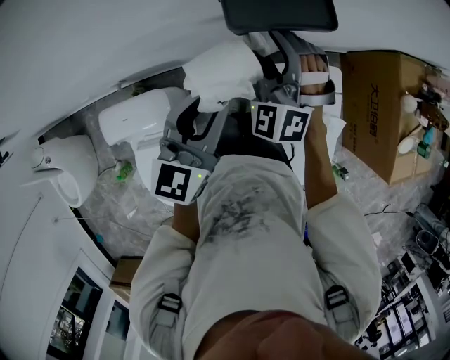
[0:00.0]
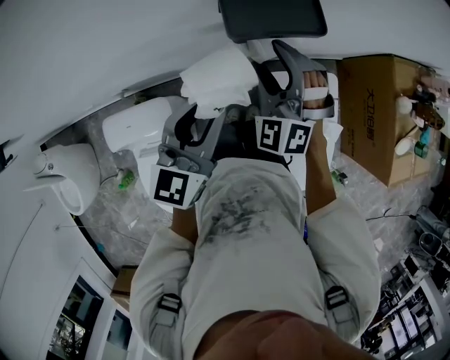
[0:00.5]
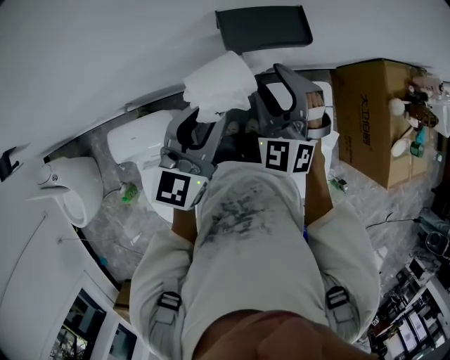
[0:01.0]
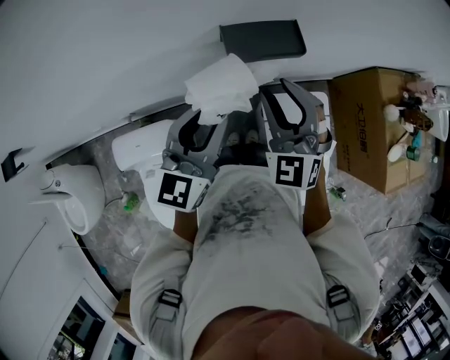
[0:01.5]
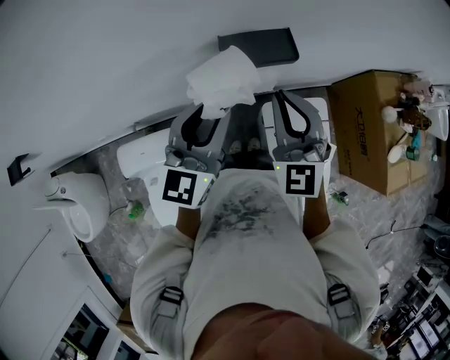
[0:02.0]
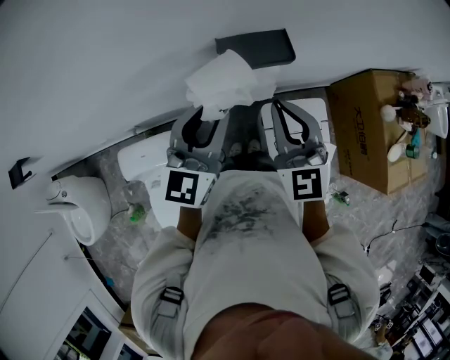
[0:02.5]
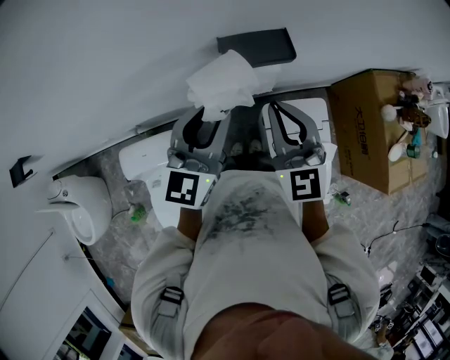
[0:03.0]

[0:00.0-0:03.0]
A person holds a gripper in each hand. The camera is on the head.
0:00.0 to 0:01.5: The right gripper moves upward and backward, approximately 15 cm, changes its angle by about 20 degrees, and closes up. The left gripper goes approximately 10 cm upward.
0:01.5 to 0:03.0: The right gripper moves about 5 cm, turns by about 20 degrees, and closes its fingers.

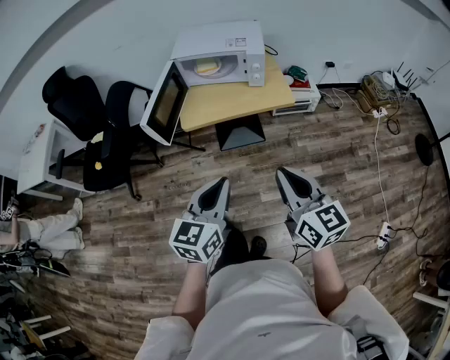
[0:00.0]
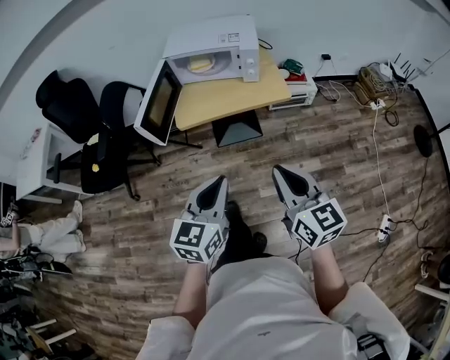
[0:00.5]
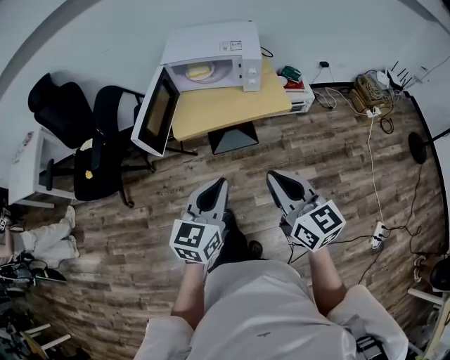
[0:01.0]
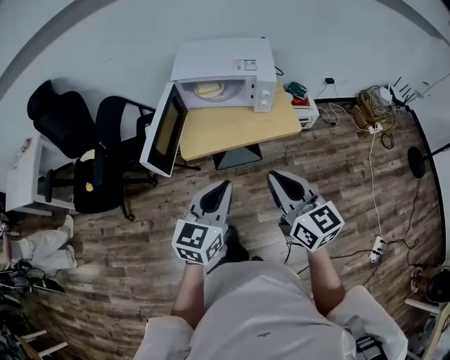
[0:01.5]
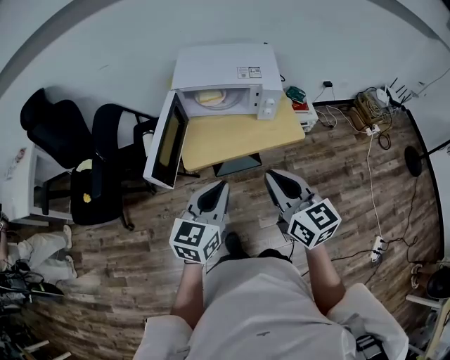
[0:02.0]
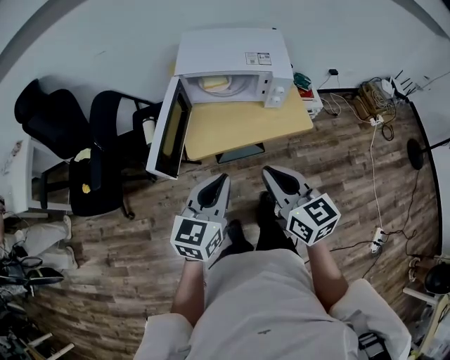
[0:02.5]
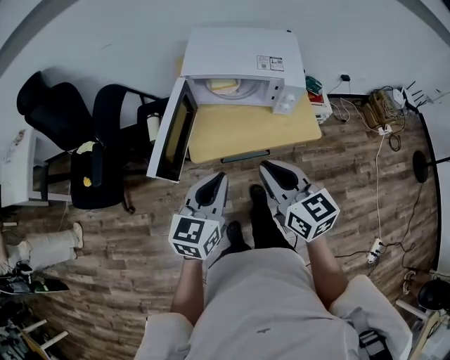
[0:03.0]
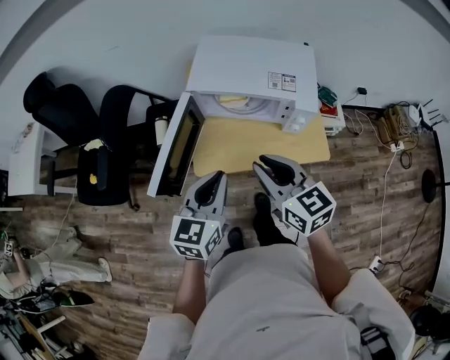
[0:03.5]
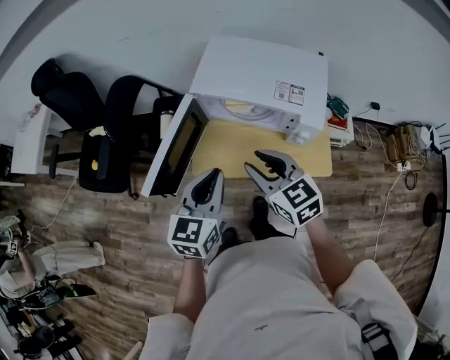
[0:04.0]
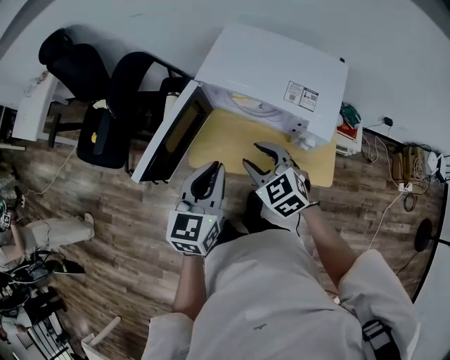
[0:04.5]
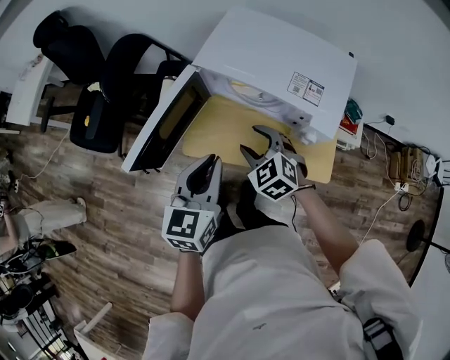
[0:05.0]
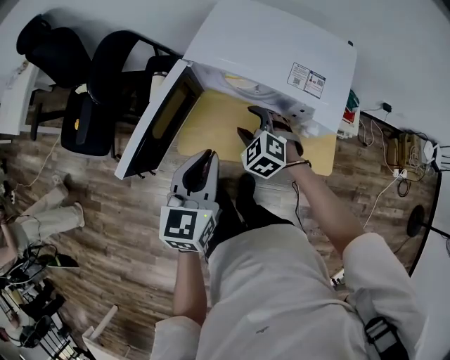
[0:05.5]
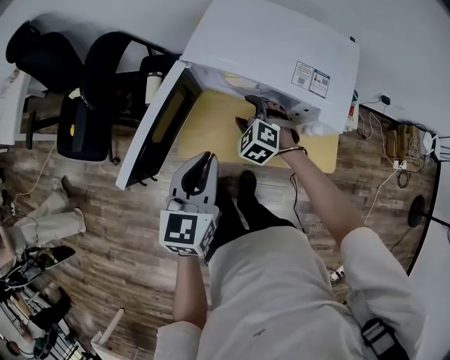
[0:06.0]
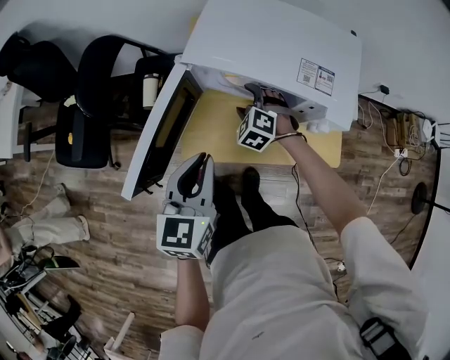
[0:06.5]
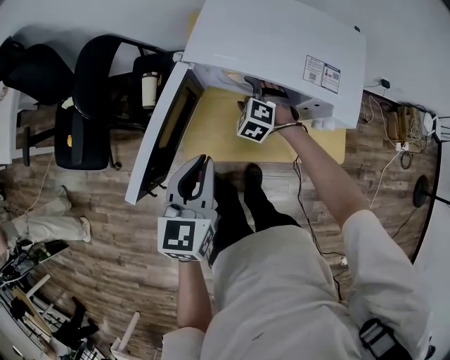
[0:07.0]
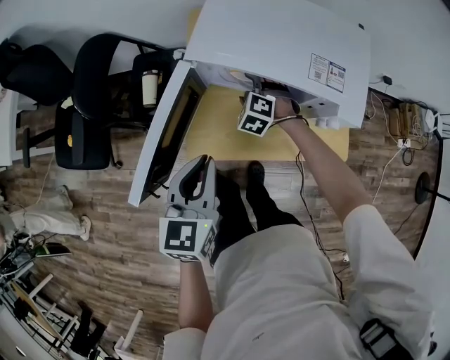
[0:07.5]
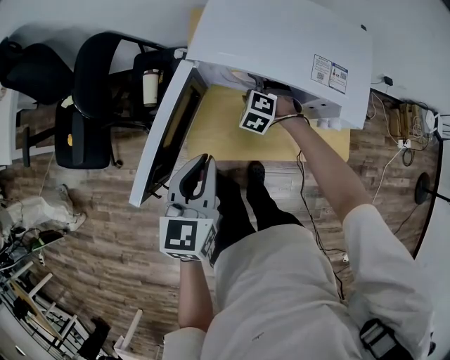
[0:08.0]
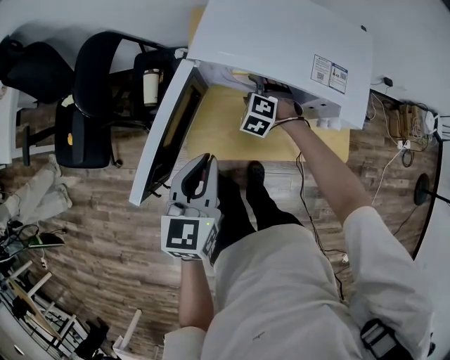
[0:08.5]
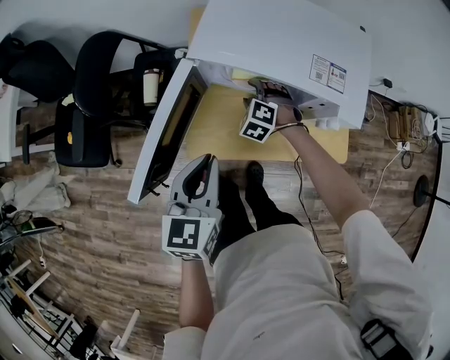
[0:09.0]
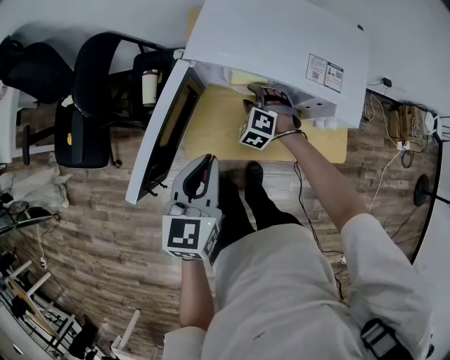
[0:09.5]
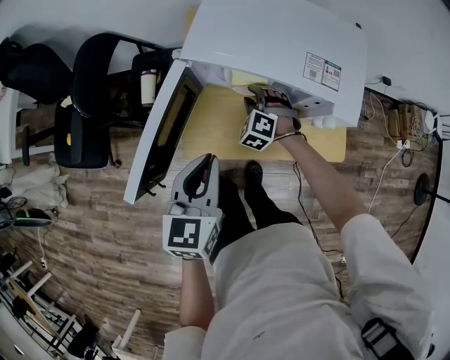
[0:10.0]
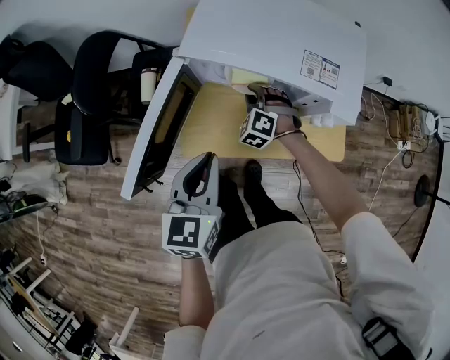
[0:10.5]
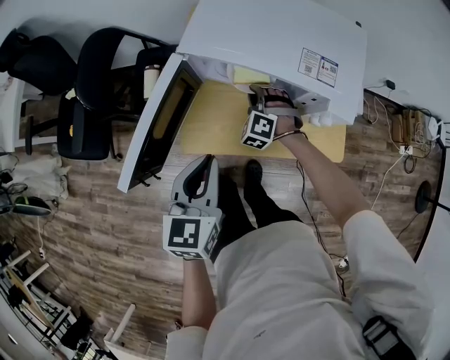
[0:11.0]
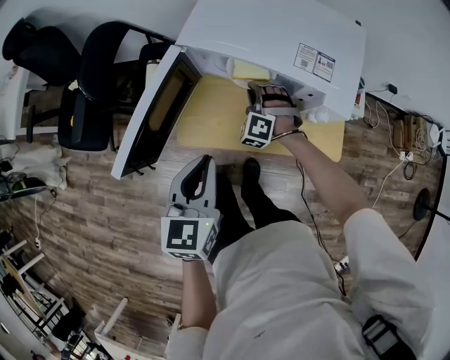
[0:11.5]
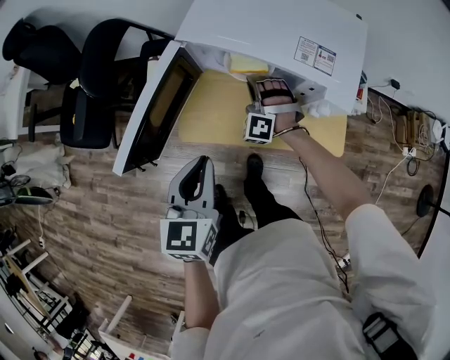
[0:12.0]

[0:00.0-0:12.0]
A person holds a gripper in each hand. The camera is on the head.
0:00.0 to 0:02.0: The right gripper heads forward and to the left, covering approximately 25 cm. Meanwhile the left gripper is displaced forward by roughly 20 cm.
0:02.0 to 0:04.0: The two grippers go roughly 20 cm forward. The right gripper turns by approximately 30 degrees, and opens its fingers, while the left gripper rotates approximately 20 degrees.
0:04.0 to 0:06.0: The right gripper goes approximately 25 cm downward and forward, rotates some 50 degrees, and opens up. The left gripper heads downward, covering about 5 cm.
0:06.0 to 0:08.0: The left gripper is displaced to the left by about 5 cm, while the right gripper moves forward and downward, approximately 10 cm.
0:08.0 to 0:10.0: The right gripper closes up.
0:10.0 to 0:12.0: The right gripper swivels roughly 30 degrees, and closes its fingers, while the left gripper is displaced backward by some 5 cm.

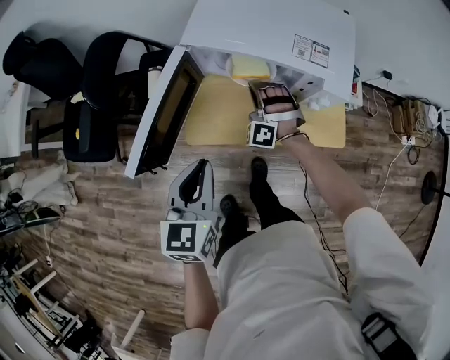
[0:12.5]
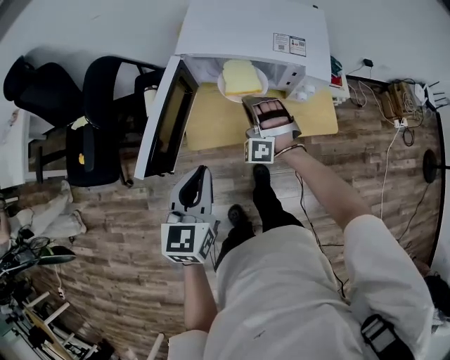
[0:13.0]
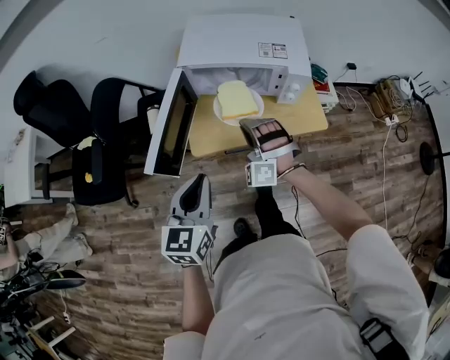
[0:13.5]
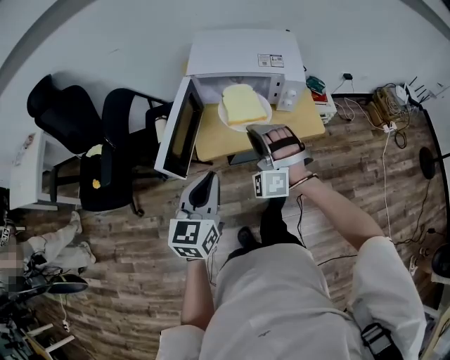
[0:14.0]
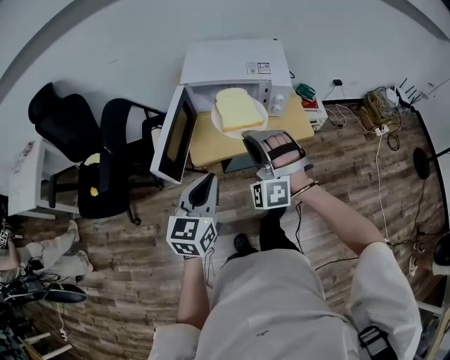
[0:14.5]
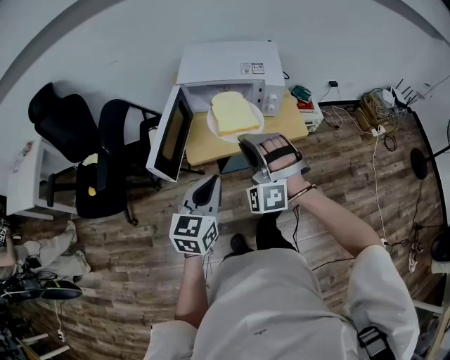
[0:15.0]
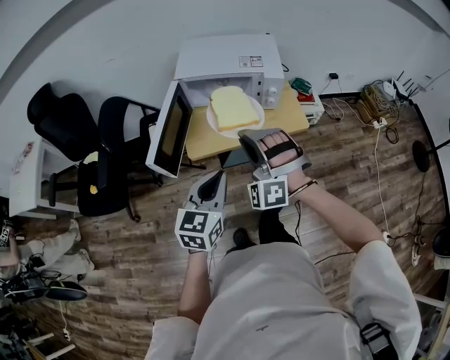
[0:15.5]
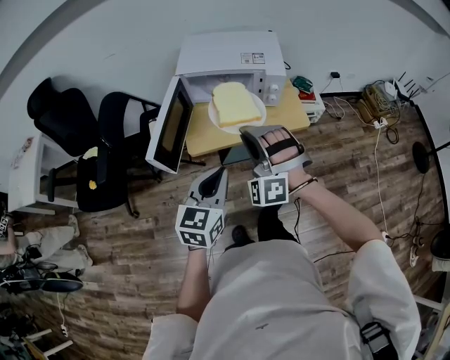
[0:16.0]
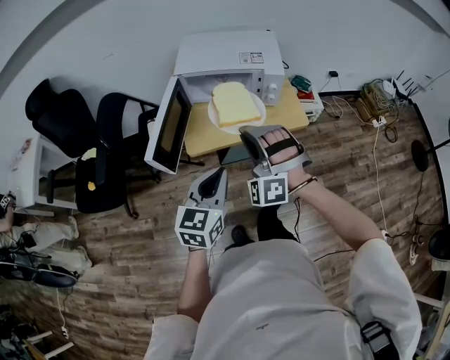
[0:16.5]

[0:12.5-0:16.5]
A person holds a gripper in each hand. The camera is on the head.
0:12.5 to 0:14.5: The right gripper goes roughly 40 cm backward and upward. The left gripper goes roughly 15 cm backward and upward, and changes its angle by about 20 degrees.
0:14.5 to 0:16.5: The left gripper shifts by about 5 cm.

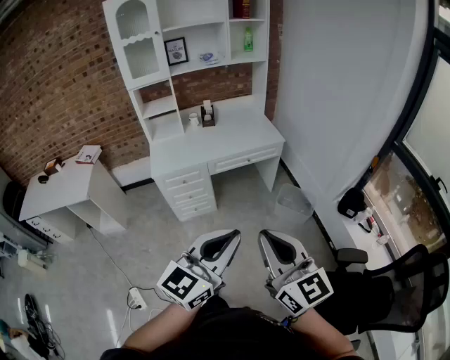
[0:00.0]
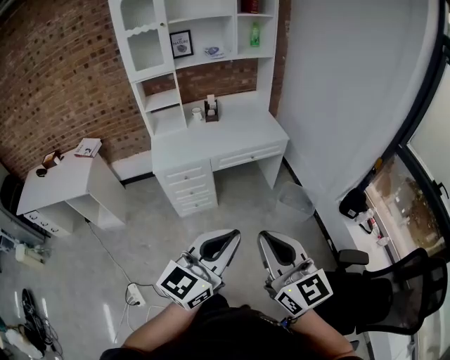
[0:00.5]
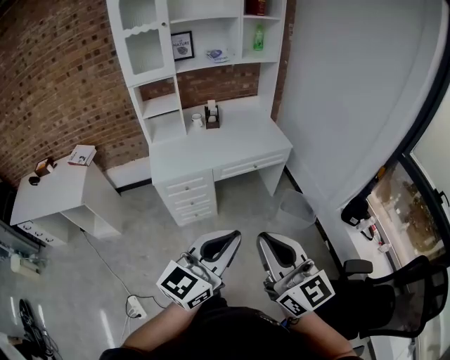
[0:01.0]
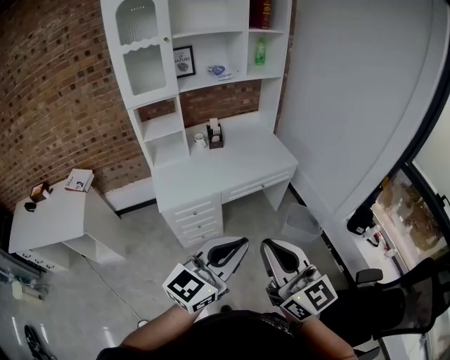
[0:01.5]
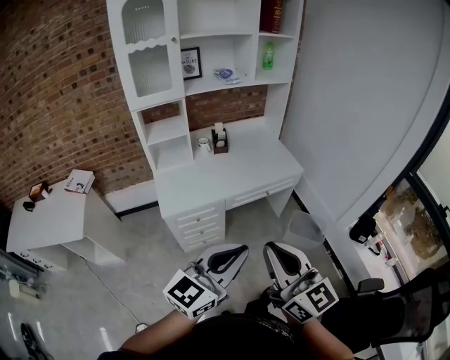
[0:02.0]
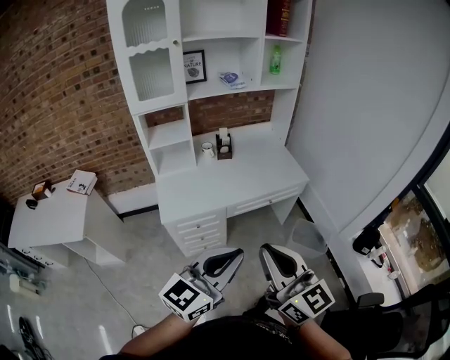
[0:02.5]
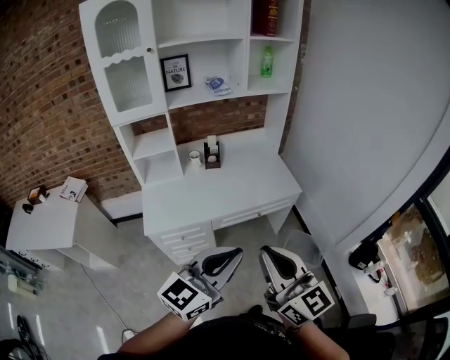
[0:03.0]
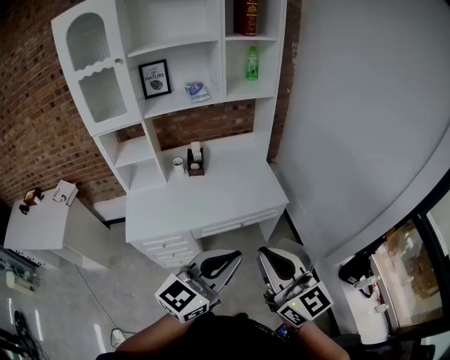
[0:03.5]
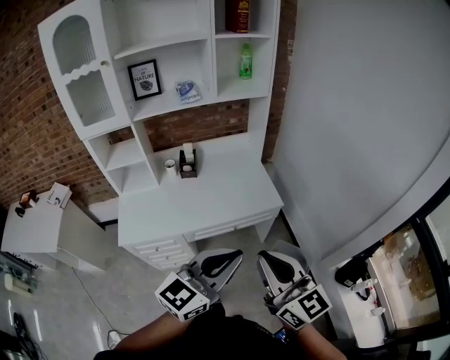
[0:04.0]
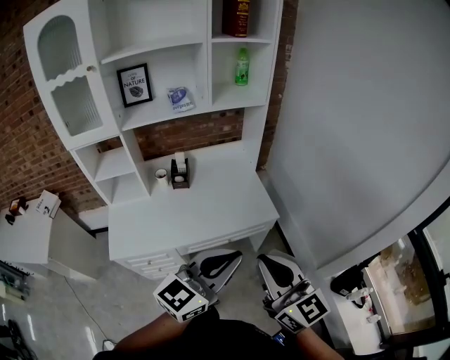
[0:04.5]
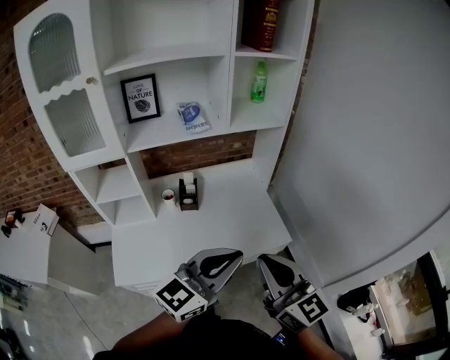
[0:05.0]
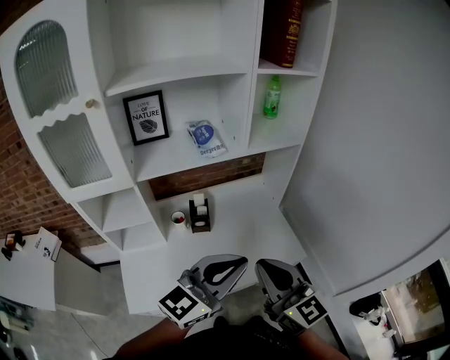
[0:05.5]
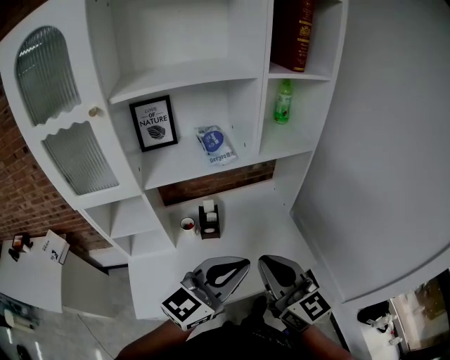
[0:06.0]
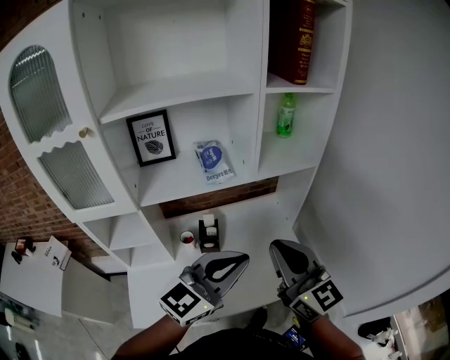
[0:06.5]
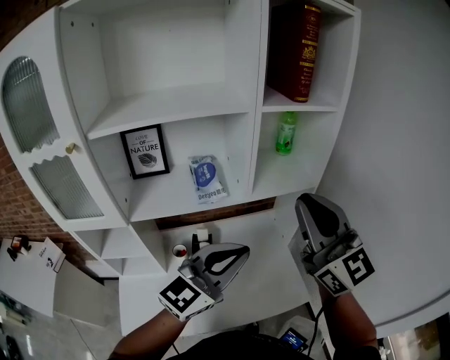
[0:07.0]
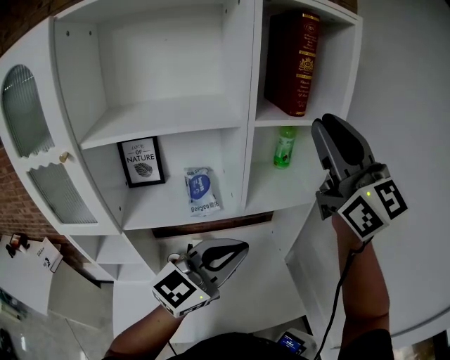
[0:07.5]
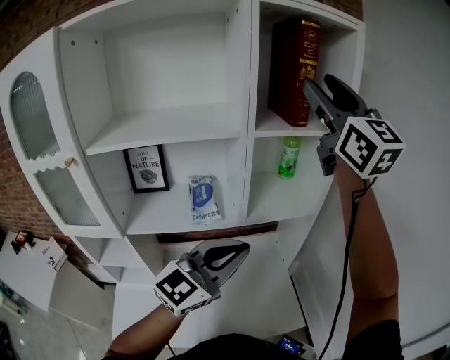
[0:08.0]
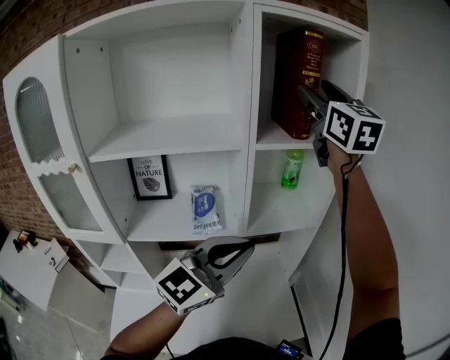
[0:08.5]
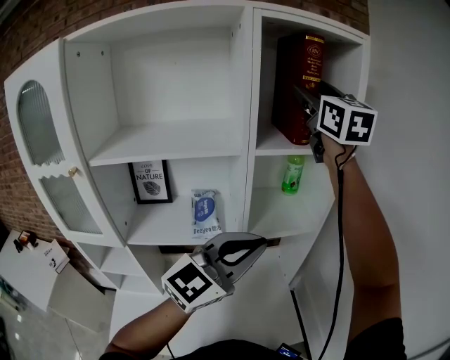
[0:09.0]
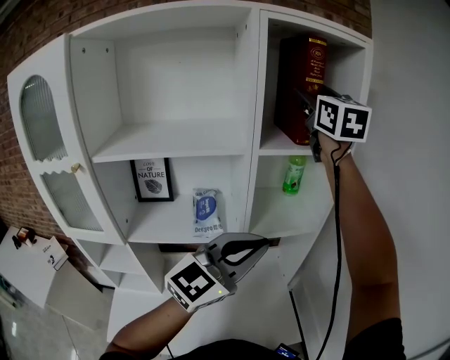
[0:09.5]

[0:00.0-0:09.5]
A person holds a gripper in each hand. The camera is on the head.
0:00.0 to 0:02.0: The right gripper is displaced to the left and forward by about 30 cm. Meanwhile the left gripper travels forward and to the left by approximately 30 cm.
0:02.0 to 0:04.0: Both grippers travel together forward and to the right, about 35 cm.
0:04.0 to 0:05.5: Both grippers move forward and to the left, roughly 30 cm.
0:05.5 to 0:07.5: The left gripper is displaced forward and upward by about 25 cm. The right gripper goes approximately 50 cm upward and forward, and changes its angle by roughly 30 degrees.
0:07.5 to 0:09.5: The left gripper heads forward and upward, covering approximately 5 cm. Meanwhile the right gripper is displaced forward by approximately 20 cm, and opens its fingers.
